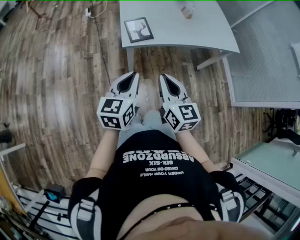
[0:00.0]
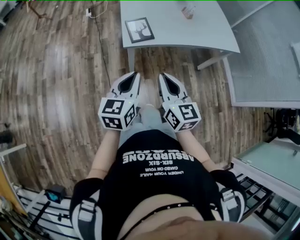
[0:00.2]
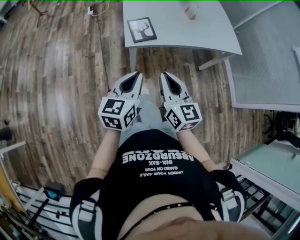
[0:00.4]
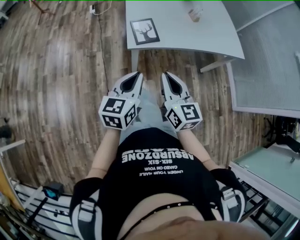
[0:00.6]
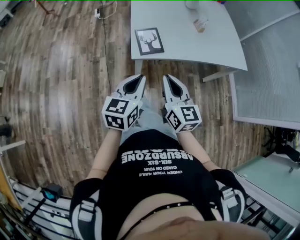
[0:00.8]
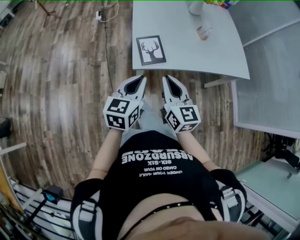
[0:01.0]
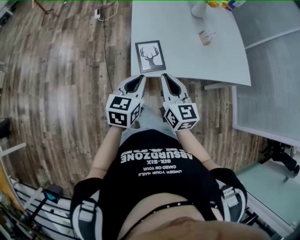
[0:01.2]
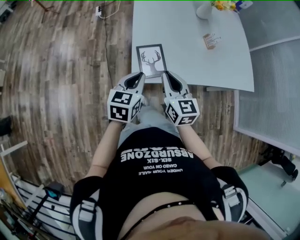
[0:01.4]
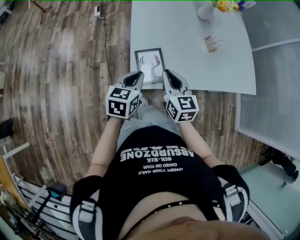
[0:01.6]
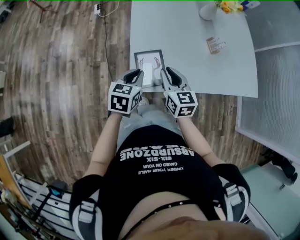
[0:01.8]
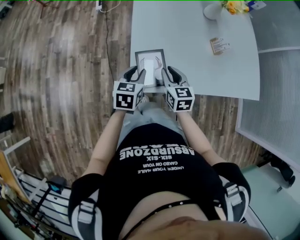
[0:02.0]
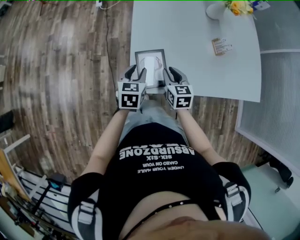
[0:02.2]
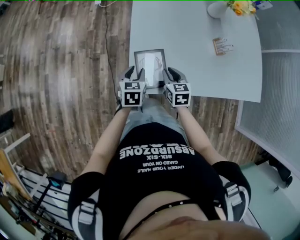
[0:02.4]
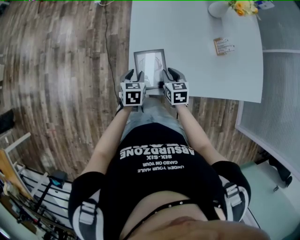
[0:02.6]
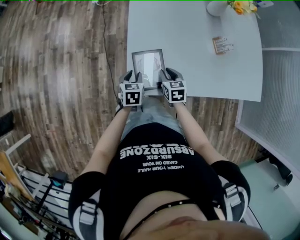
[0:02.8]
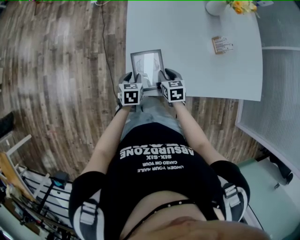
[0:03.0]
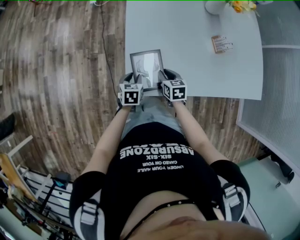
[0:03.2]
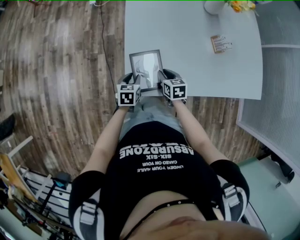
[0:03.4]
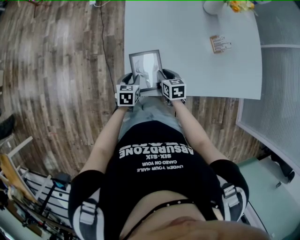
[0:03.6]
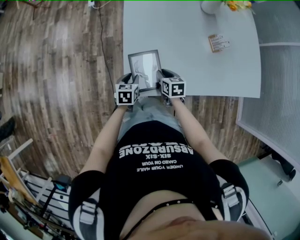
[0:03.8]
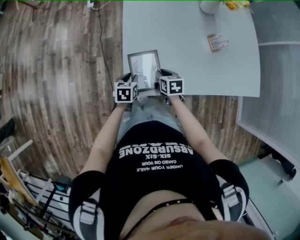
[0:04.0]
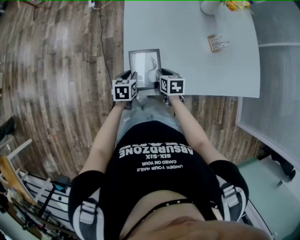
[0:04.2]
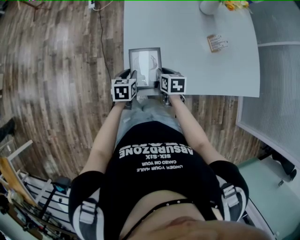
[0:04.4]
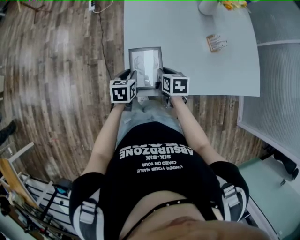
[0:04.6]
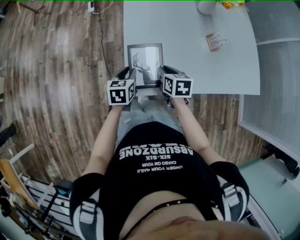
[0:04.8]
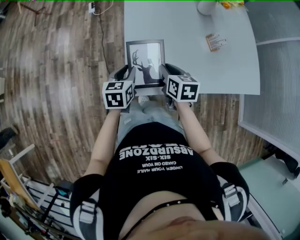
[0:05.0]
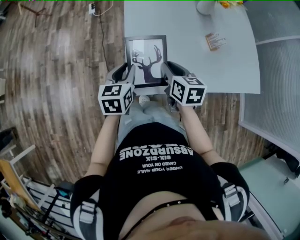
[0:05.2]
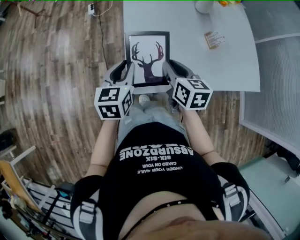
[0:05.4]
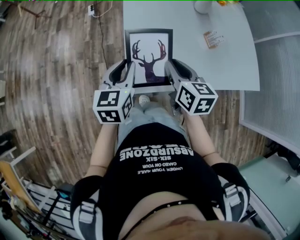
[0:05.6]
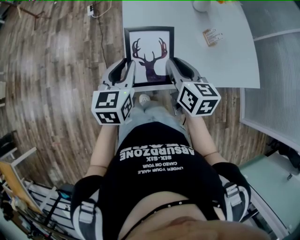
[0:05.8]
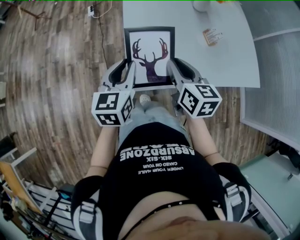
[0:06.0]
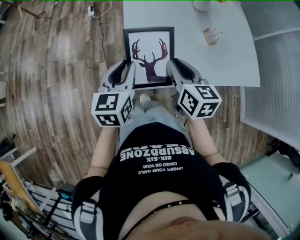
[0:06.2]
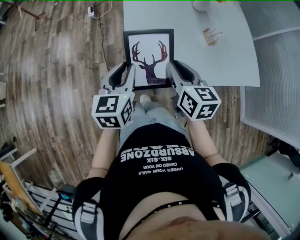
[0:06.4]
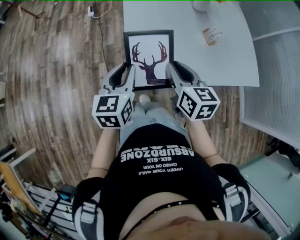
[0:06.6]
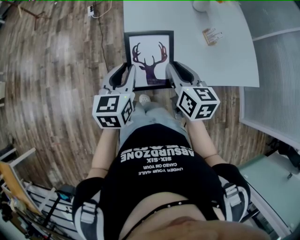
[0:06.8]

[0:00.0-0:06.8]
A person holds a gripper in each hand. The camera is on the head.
0:00.0 to 0:01.4: Both grippers travel together forward, approximately 30 cm.
0:01.4 to 0:02.8: Both grippers travel together downward and forward, approximately 25 cm. The right gripper swivels about 30 degrees, and opens up, while the left gripper changes its angle by some 30 degrees, and opens up.
0:02.8 to 0:04.0: There are only small adjustments of the grippers.
0:04.0 to 0:05.4: Both grippers travel together upward, about 25 cm. The right gripper turns by approximately 20 degrees, while the left gripper turns by some 30 degrees.
0:05.4 to 0:06.8: The grippers stay close to where they were, moving slightly.

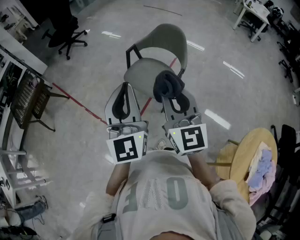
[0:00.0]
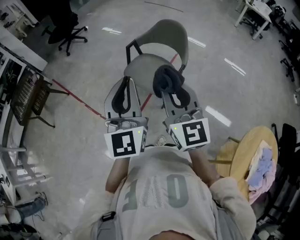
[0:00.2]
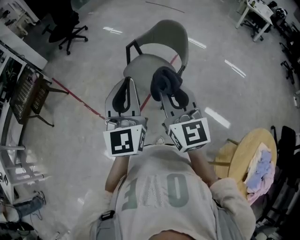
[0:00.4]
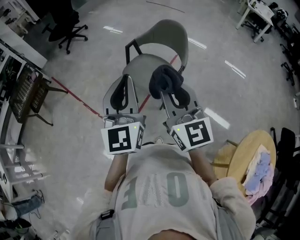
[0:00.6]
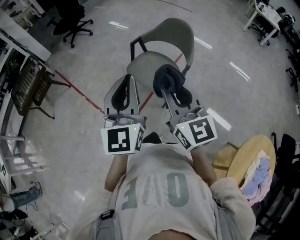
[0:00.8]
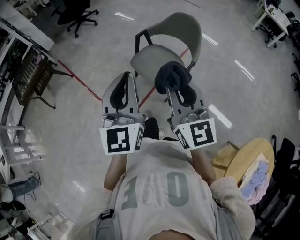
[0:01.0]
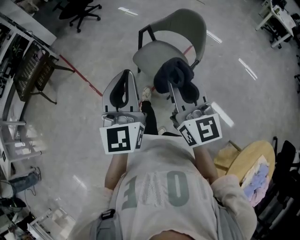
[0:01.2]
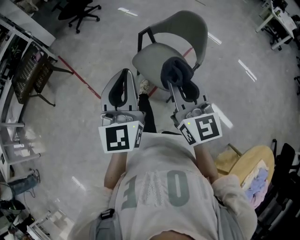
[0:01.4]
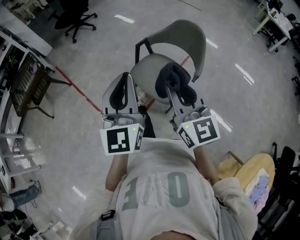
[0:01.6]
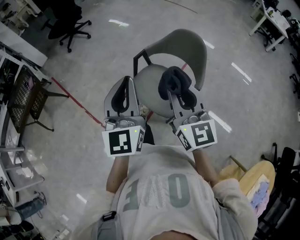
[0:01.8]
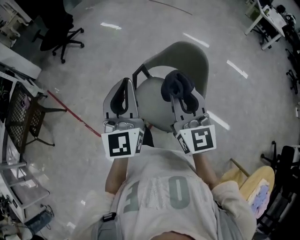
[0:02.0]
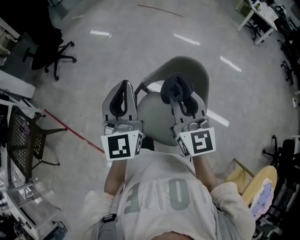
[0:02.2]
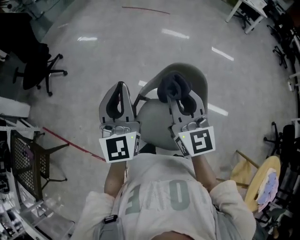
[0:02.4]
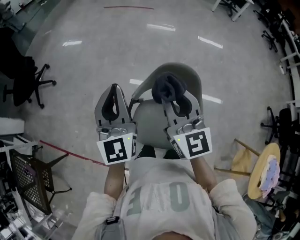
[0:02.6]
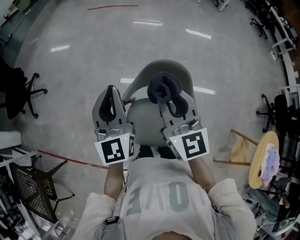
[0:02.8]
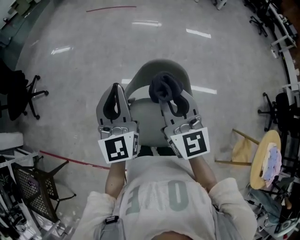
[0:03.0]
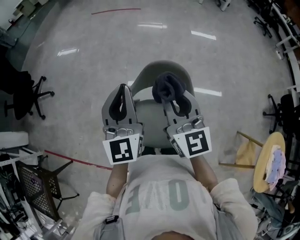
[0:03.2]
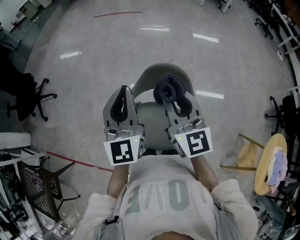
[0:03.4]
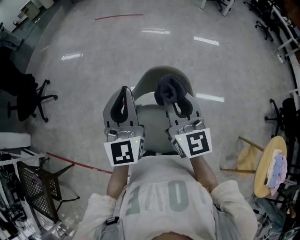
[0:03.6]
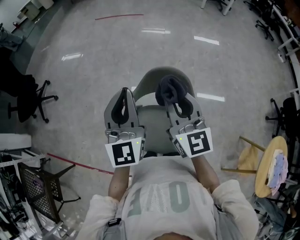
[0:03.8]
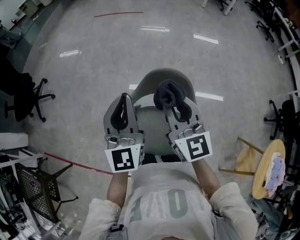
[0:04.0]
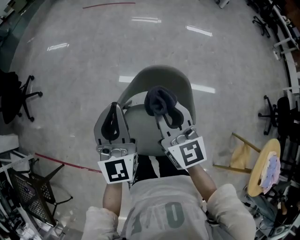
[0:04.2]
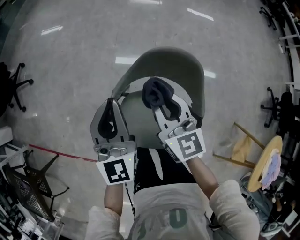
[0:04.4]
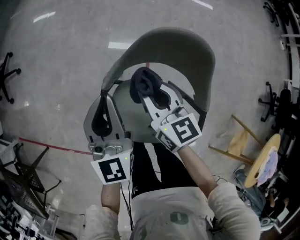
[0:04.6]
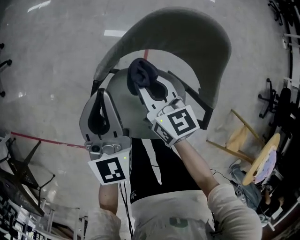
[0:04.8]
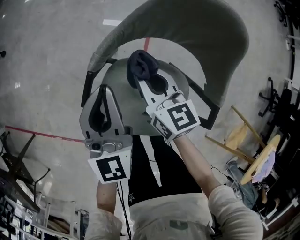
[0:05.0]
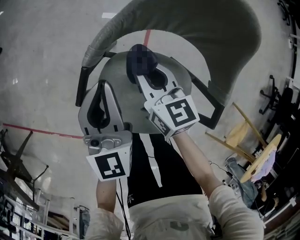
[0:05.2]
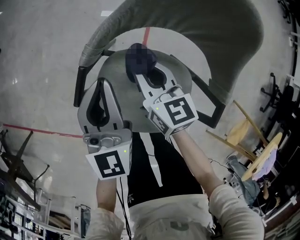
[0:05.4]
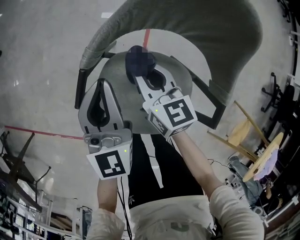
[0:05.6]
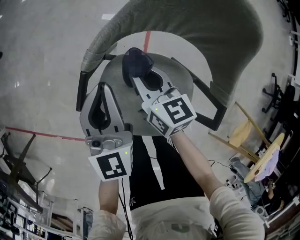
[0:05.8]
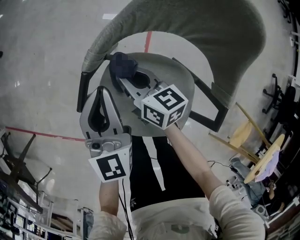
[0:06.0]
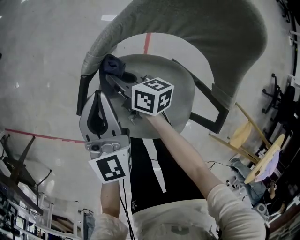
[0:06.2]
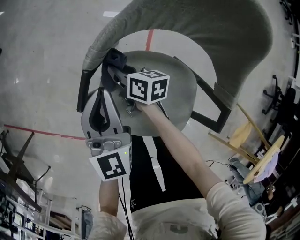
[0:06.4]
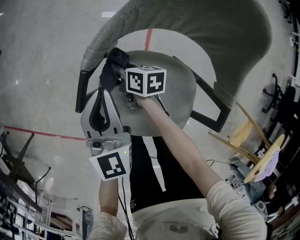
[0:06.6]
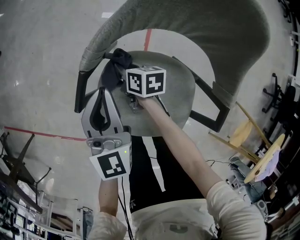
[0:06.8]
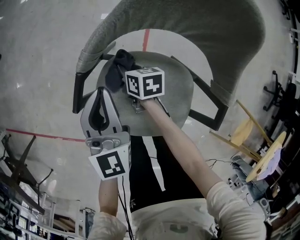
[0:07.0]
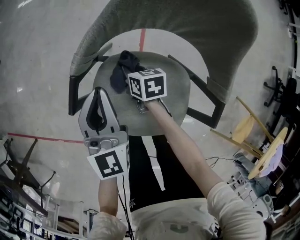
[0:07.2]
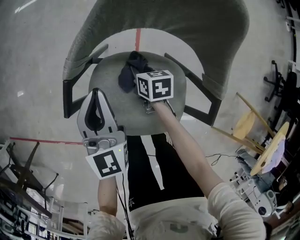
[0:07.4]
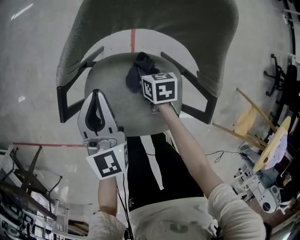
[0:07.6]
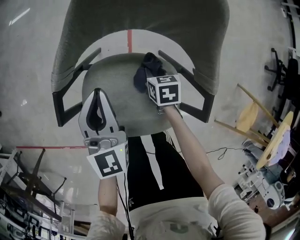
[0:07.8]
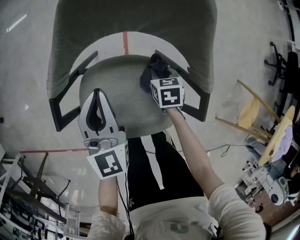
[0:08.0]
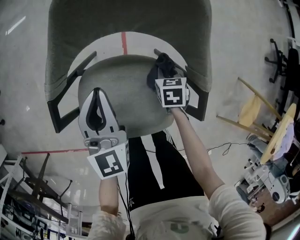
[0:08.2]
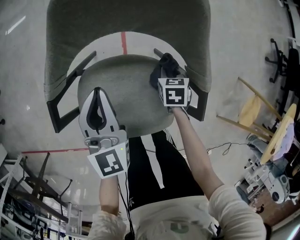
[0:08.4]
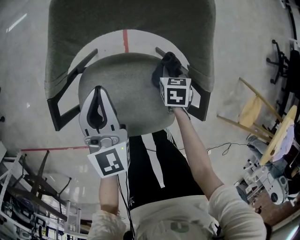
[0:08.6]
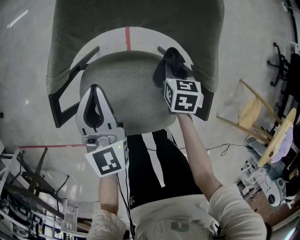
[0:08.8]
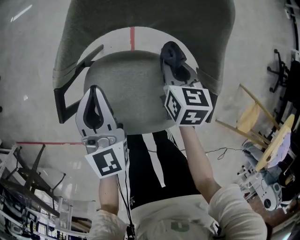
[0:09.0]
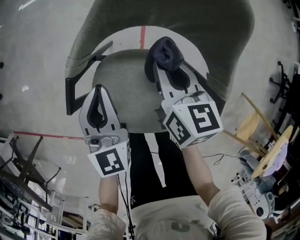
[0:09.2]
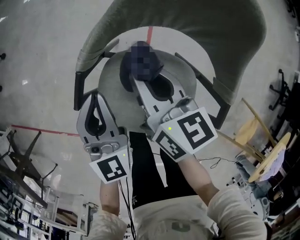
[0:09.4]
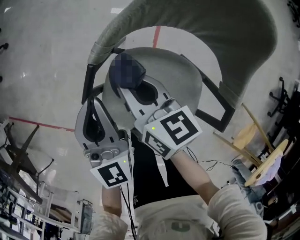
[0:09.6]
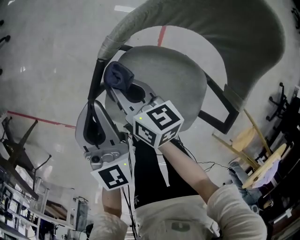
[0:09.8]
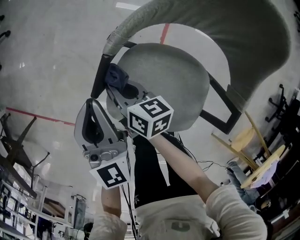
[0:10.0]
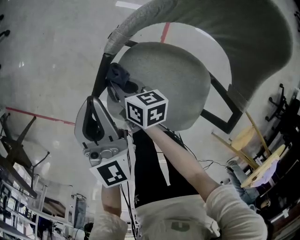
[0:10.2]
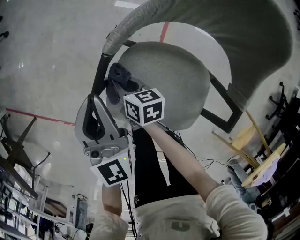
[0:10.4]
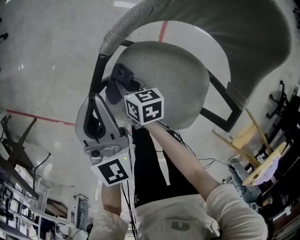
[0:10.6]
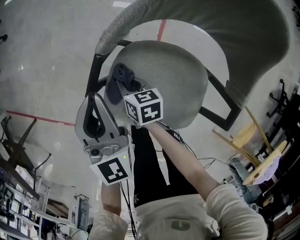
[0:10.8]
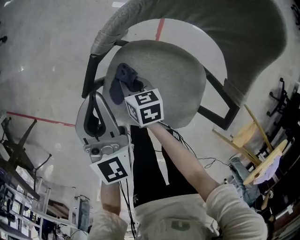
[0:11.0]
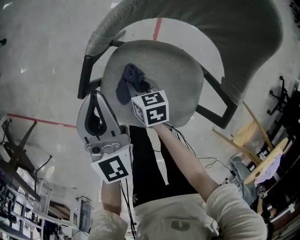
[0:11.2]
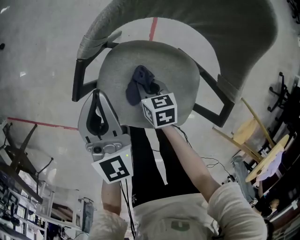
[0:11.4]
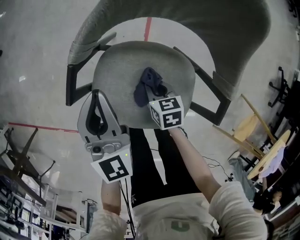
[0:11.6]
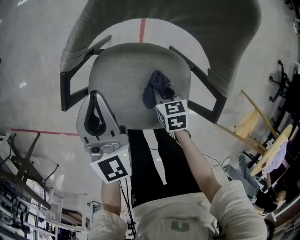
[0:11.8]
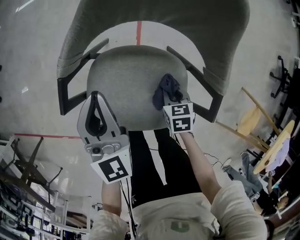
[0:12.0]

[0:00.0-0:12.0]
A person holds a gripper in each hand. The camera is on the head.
0:00.0 to 0:01.6: The two grippers go roughly 15 cm forward and downward.
0:01.6 to 0:03.0: The right gripper moves about 40 cm, and swivels some 30 degrees, while the left gripper changes place by about 50 cm, and turns by some 30 degrees.
0:03.0 to 0:04.4: The grippers both shift downward by approximately 15 cm.
0:04.4 to 0:06.0: Both grippers move downward, roughly 30 cm. The right gripper changes its angle by about 40 degrees.
0:06.0 to 0:07.6: The left gripper shifts roughly 5 cm to the right. Meanwhile the right gripper travels to the right, downward and backward by roughly 20 cm, and angles its fingers downward, by about 30 degrees.
0:07.6 to 0:09.0: The right gripper moves upward, about 15 cm, and swivels about 20 degrees.
0:09.0 to 0:10.4: The right gripper moves some 35 cm, and rotates about 40 degrees. Meanwhile the left gripper shifts by roughly 15 cm.
0:10.4 to 0:12.0: The left gripper changes place by roughly 15 cm; the right gripper moves some 30 cm, and changes its angle by approximately 40 degrees.

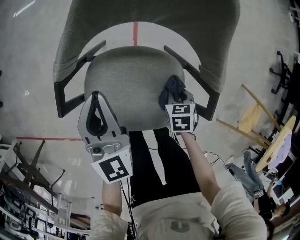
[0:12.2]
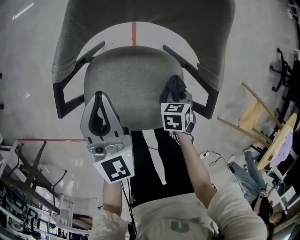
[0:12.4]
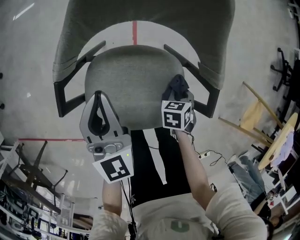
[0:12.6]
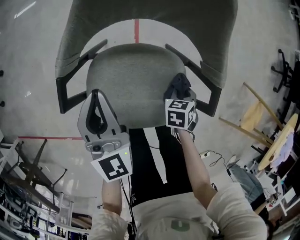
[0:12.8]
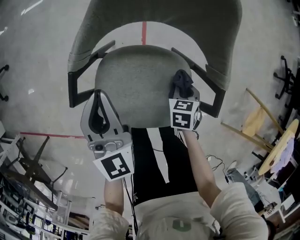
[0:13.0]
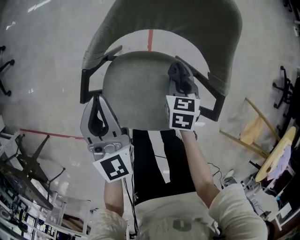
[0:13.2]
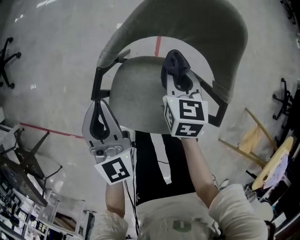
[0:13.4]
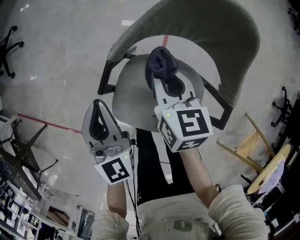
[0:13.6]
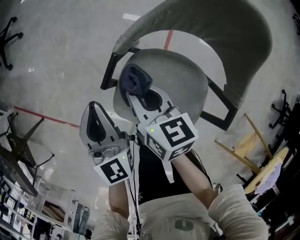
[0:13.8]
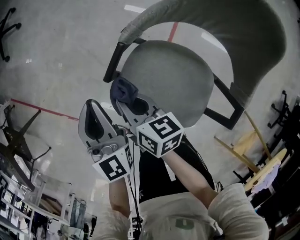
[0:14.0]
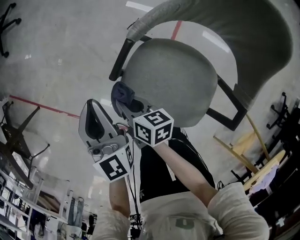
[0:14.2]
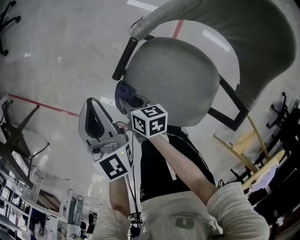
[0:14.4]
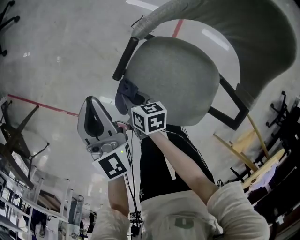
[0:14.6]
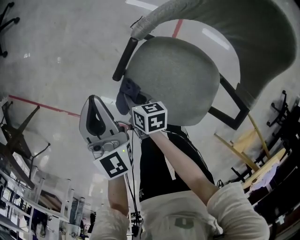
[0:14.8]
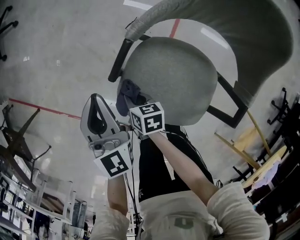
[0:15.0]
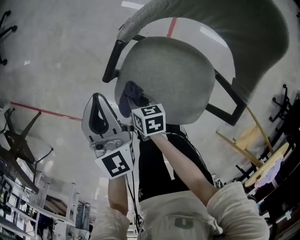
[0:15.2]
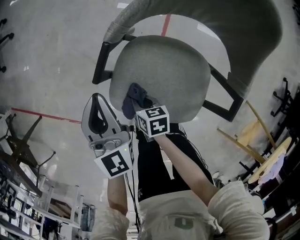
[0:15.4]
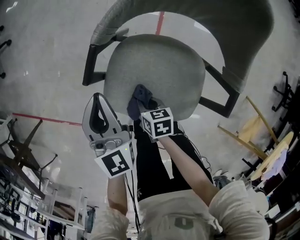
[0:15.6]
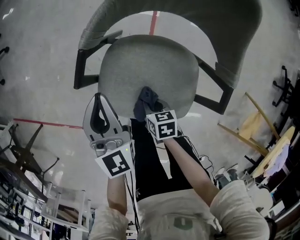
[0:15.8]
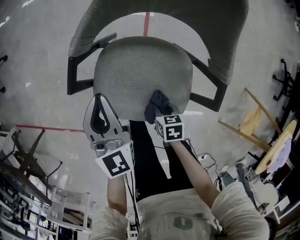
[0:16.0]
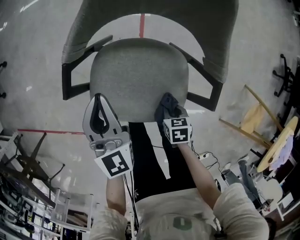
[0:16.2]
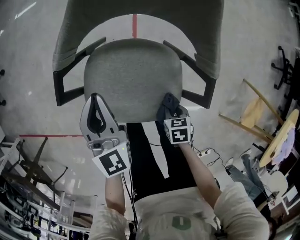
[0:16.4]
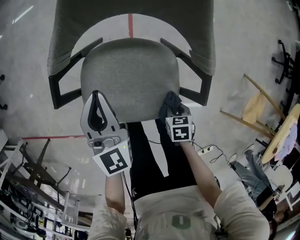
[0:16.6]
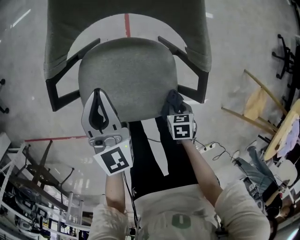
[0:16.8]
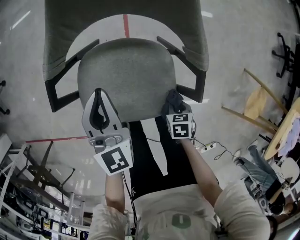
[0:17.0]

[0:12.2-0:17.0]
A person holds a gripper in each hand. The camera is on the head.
0:12.2 to 0:13.8: The left gripper moves approximately 15 cm, and changes its angle by roughly 20 degrees, while the right gripper ends up roughly 35 cm from where it was, and angles its fingers upward, by about 40 degrees.
0:13.8 to 0:15.4: The right gripper travels downward and backward by approximately 25 cm, and swivels roughly 30 degrees.
0:15.4 to 0:17.0: The left gripper ends up approximately 20 cm from where it was, and rotates some 20 degrees; the right gripper ends up some 30 cm from where it was, and swivels about 30 degrees.
